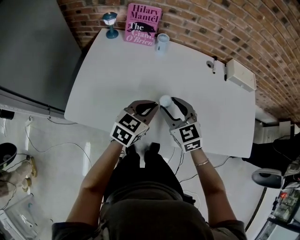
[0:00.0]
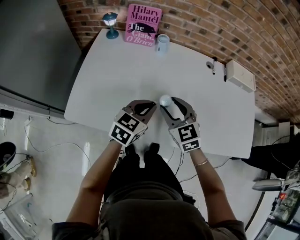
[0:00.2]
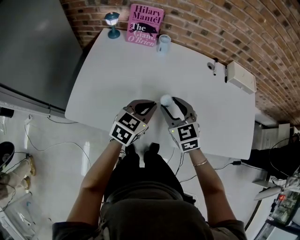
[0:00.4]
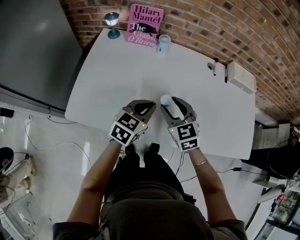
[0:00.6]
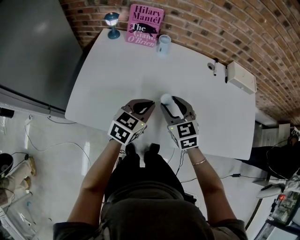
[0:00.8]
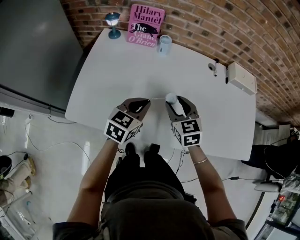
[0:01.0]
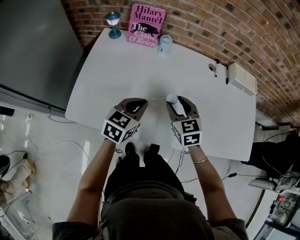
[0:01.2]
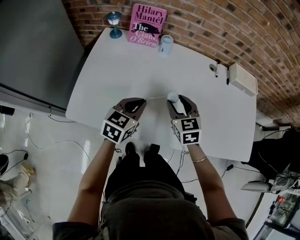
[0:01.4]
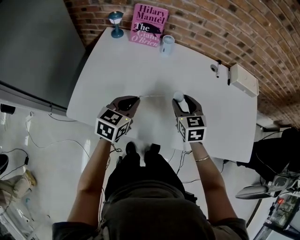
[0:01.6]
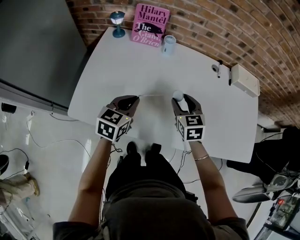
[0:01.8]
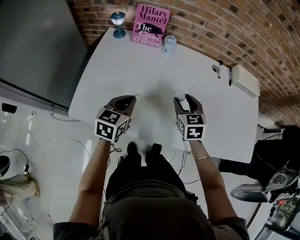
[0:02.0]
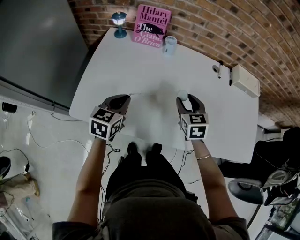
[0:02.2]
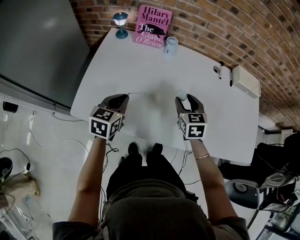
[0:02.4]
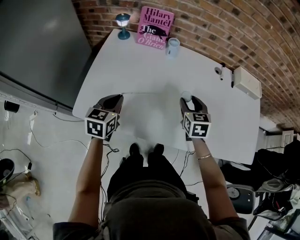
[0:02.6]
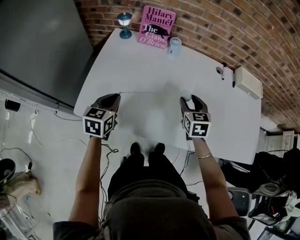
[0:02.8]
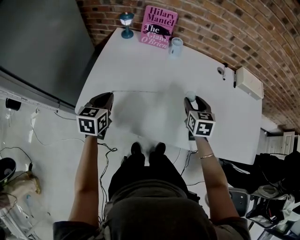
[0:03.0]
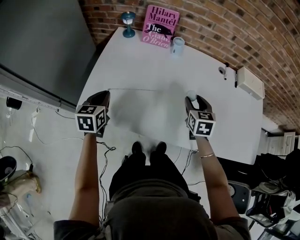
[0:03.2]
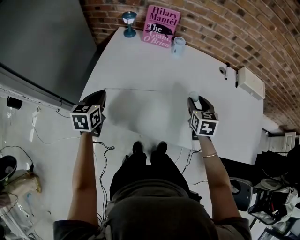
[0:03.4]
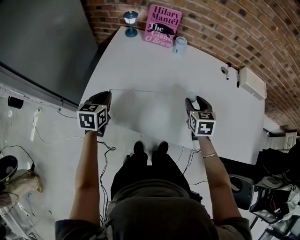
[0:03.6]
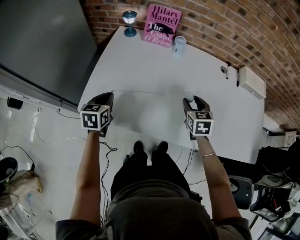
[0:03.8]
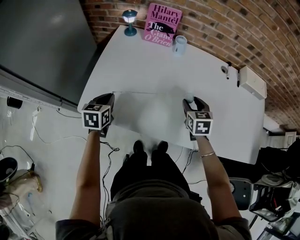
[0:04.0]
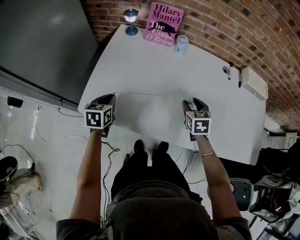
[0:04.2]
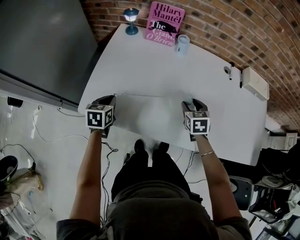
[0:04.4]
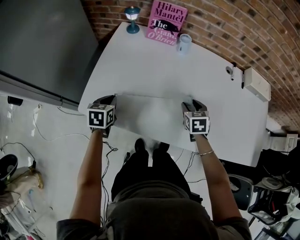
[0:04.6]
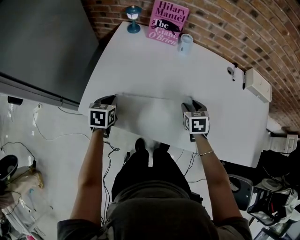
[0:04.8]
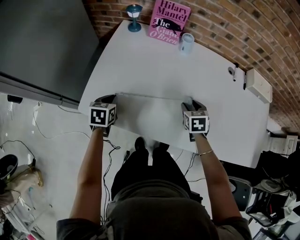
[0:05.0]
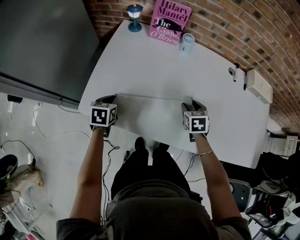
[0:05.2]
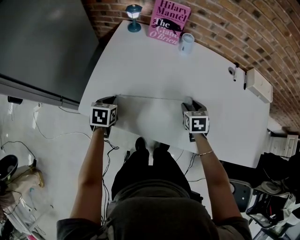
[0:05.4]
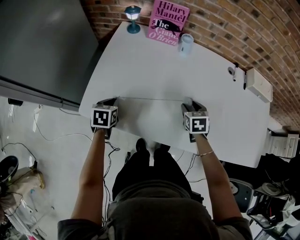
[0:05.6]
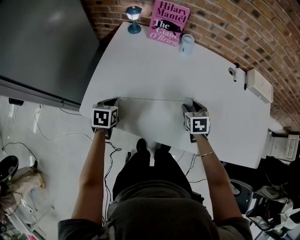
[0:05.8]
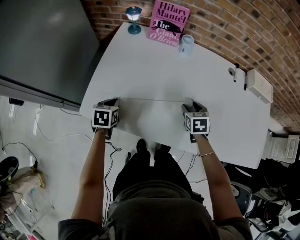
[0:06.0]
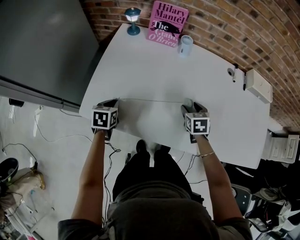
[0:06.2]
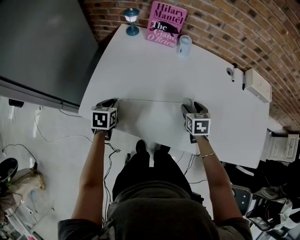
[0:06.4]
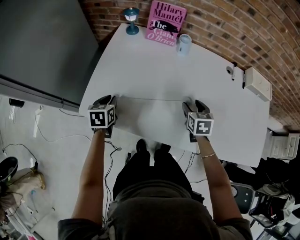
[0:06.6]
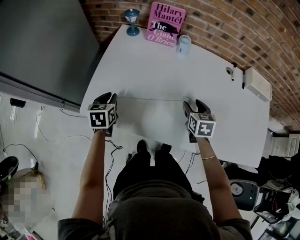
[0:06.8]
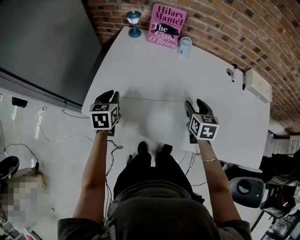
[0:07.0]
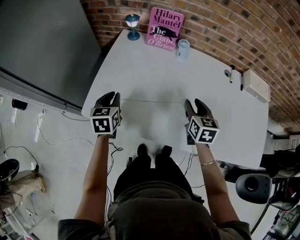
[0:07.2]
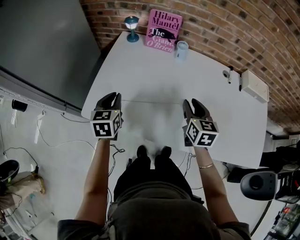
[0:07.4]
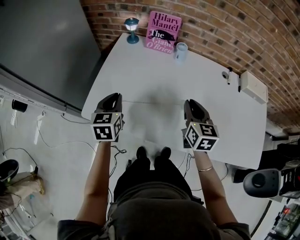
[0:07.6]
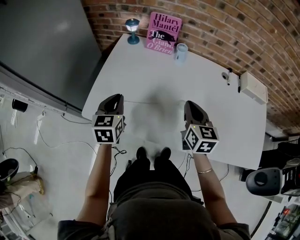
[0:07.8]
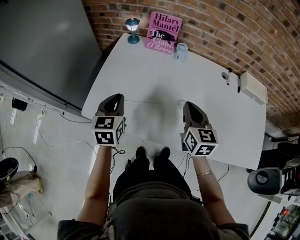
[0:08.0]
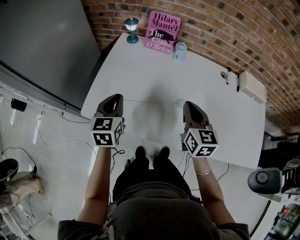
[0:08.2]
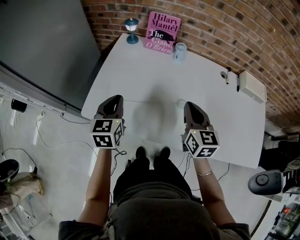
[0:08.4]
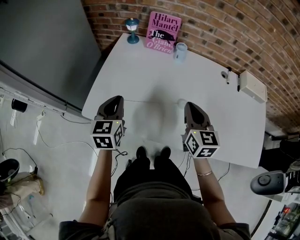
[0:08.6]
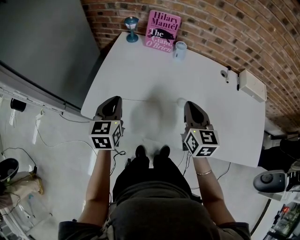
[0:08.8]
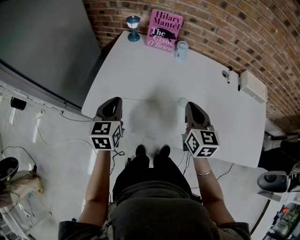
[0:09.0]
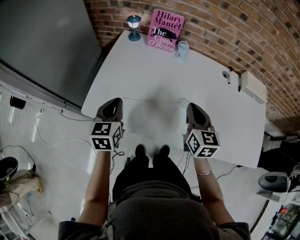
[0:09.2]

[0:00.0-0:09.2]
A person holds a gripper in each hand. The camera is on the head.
0:00.0 to 0:01.6: The left gripper is displaced to the left by roughly 10 cm. The right gripper heads forward, covering about 5 cm.
0:01.6 to 0:03.0: The left gripper goes approximately 15 cm to the left, and changes its angle by roughly 20 degrees.
0:03.0 to 0:04.6: Both grippers move downward, about 10 cm.
0:04.6 to 0:06.2: The grippers move only a little.
0:06.2 to 0:07.6: The two grippers go some 15 cm upward. The left gripper rotates about 30 degrees; the right gripper rotates roughly 30 degrees, and closes up.
0:07.6 to 0:09.2: The grippers make only small movements.

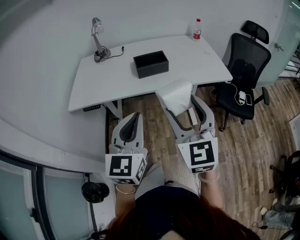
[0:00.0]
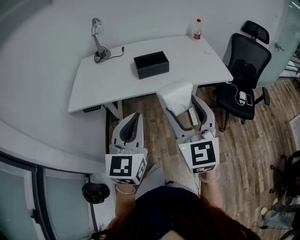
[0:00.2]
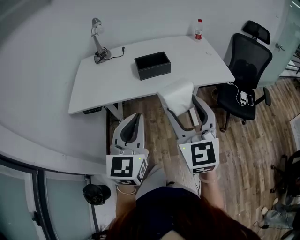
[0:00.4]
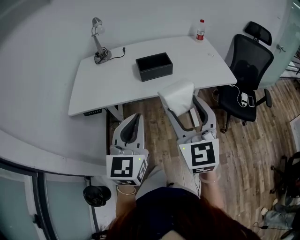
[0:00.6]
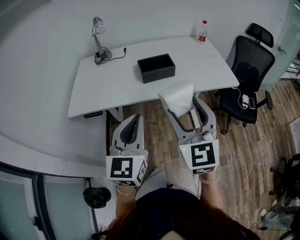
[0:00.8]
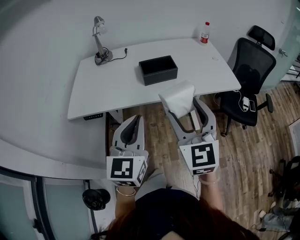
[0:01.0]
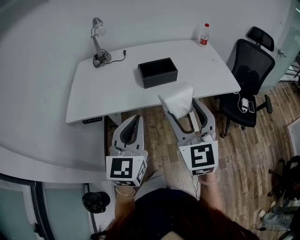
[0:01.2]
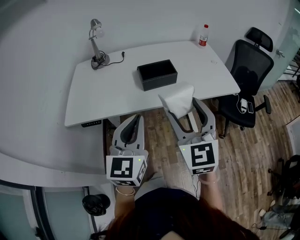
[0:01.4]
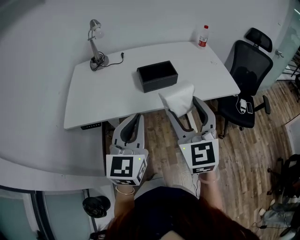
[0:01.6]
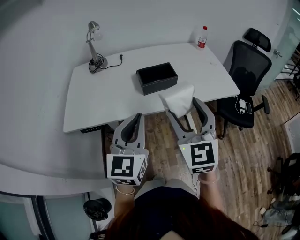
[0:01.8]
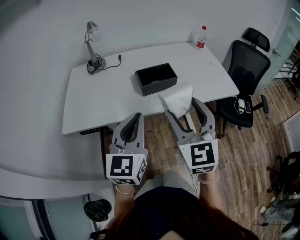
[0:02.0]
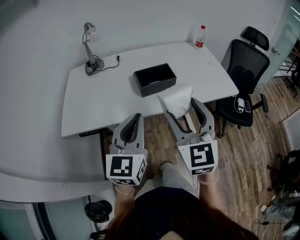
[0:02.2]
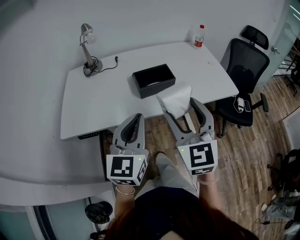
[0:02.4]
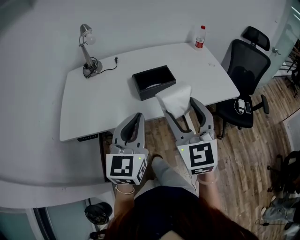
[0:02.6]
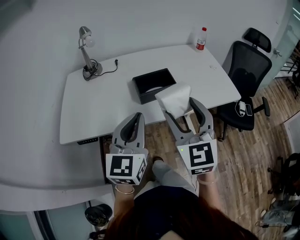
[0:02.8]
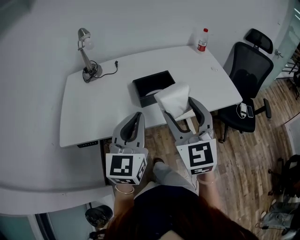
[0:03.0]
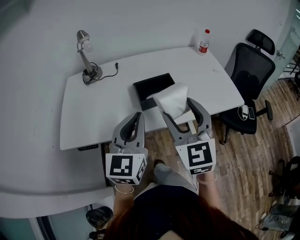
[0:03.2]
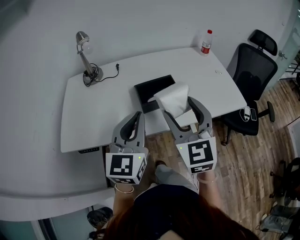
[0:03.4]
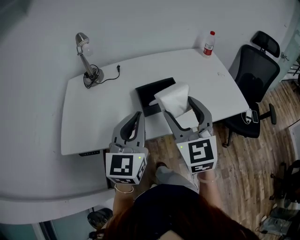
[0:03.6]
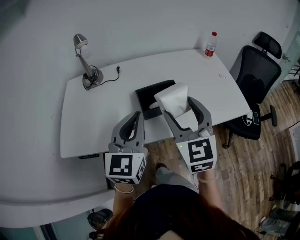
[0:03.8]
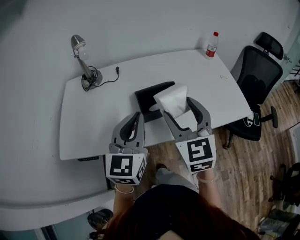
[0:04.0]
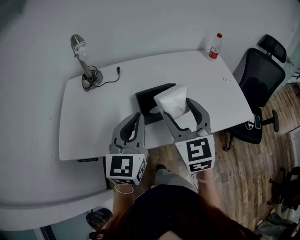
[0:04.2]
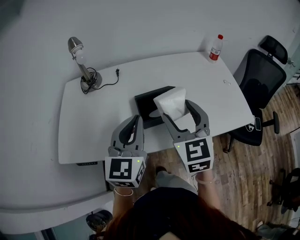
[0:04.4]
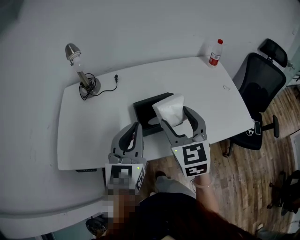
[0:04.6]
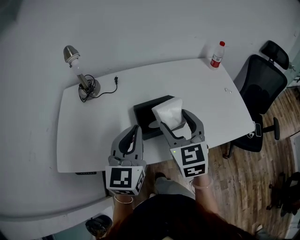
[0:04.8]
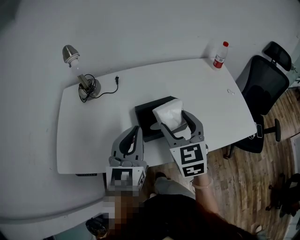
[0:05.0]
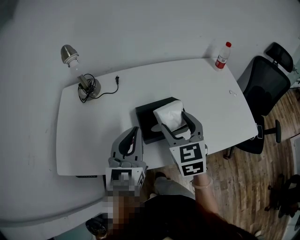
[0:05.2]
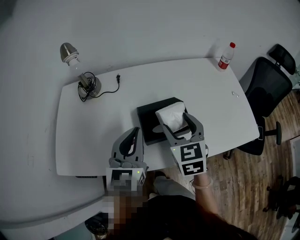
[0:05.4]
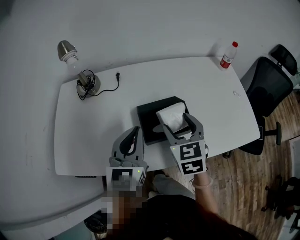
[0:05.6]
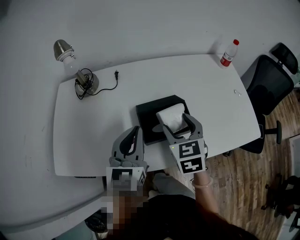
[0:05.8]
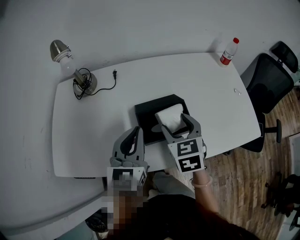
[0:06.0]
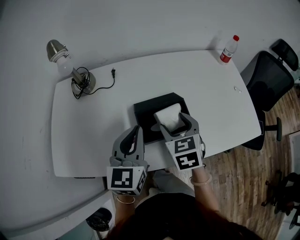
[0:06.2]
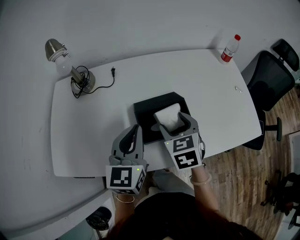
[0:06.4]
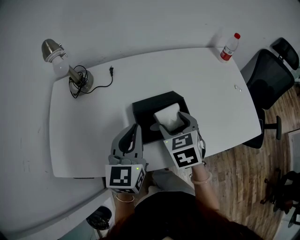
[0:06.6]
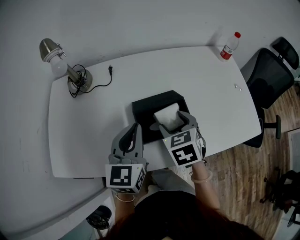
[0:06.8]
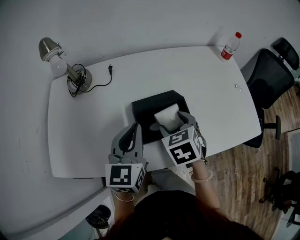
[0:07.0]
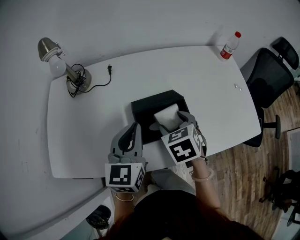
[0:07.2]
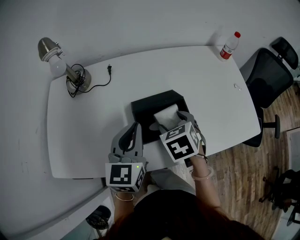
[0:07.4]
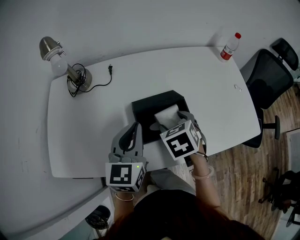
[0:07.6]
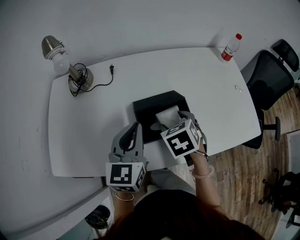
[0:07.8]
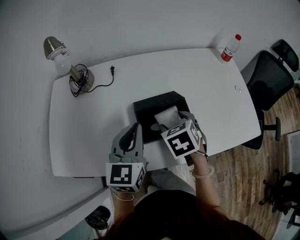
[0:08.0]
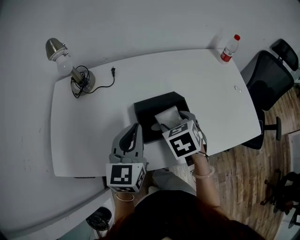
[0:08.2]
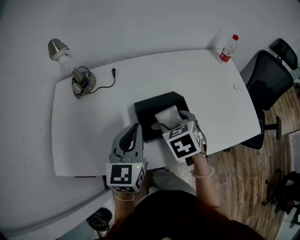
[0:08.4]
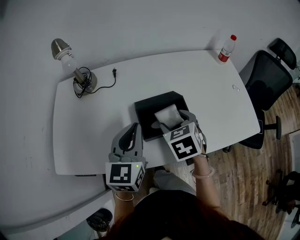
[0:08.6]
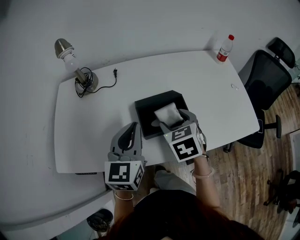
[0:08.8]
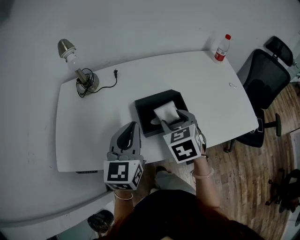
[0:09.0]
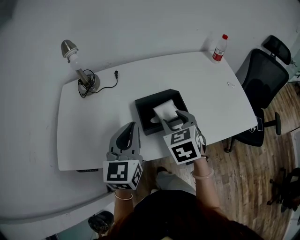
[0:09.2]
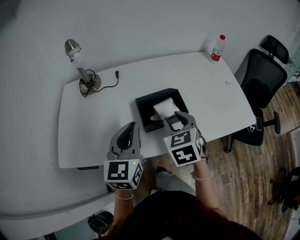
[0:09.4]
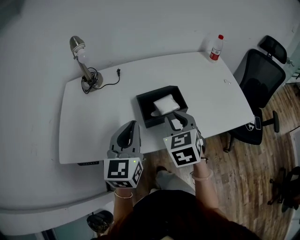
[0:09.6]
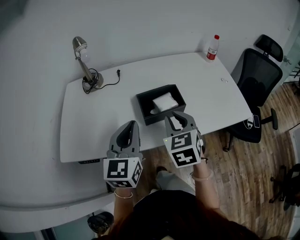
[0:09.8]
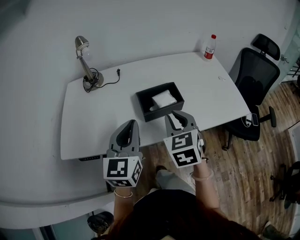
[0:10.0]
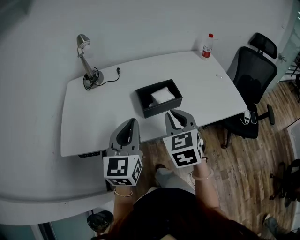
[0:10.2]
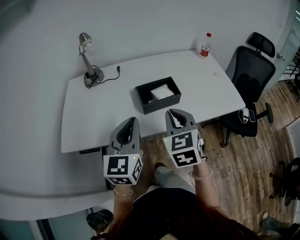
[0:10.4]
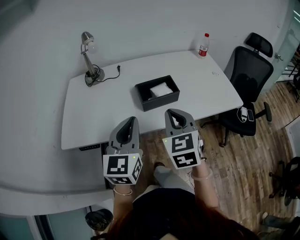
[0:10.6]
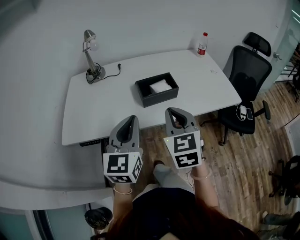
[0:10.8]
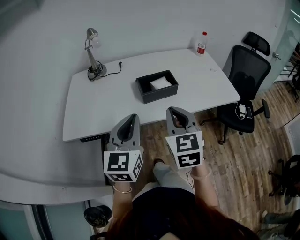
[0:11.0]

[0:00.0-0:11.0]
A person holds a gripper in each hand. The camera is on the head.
0:00.0 to 0:01.6: The grippers both shift forward and to the left by roughly 15 cm.
0:01.6 to 0:03.2: The grippers both shift forward by roughly 10 cm.
0:03.2 to 0:04.8: Both grippers travel together forward, some 15 cm.
0:04.8 to 0:06.2: The right gripper shifts approximately 10 cm downward and forward, and changes its angle by roughly 20 degrees; the left gripper goes approximately 5 cm forward and downward.
0:06.2 to 0:07.8: The right gripper rotates approximately 20 degrees.
0:07.8 to 0:09.4: The left gripper goes about 10 cm backward; the right gripper goes approximately 10 cm upward and backward, swivels approximately 20 degrees, and closes.
0:09.4 to 0:11.0: The right gripper moves backward and upward, some 20 cm, changes its angle by about 20 degrees, and closes. Meanwhile the left gripper is displaced backward by about 20 cm.

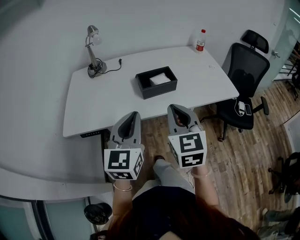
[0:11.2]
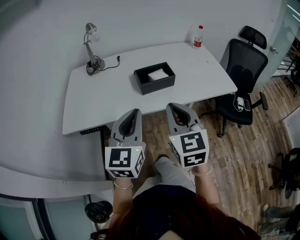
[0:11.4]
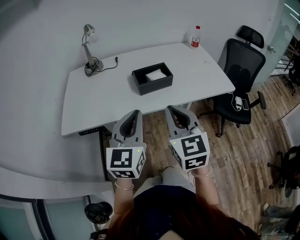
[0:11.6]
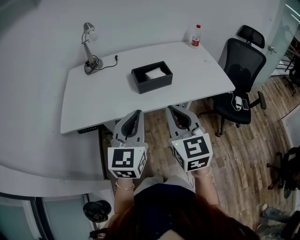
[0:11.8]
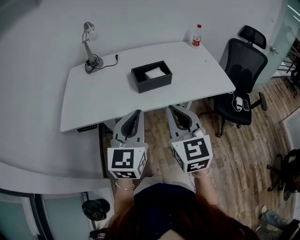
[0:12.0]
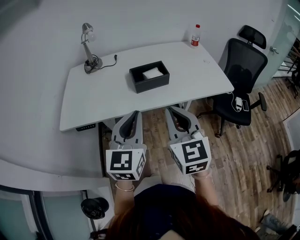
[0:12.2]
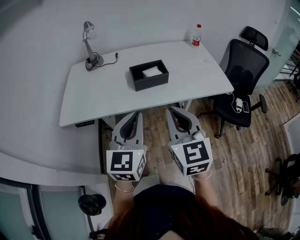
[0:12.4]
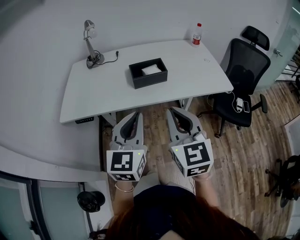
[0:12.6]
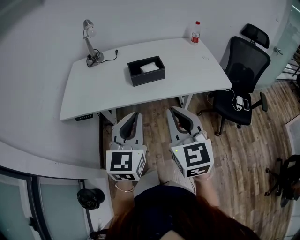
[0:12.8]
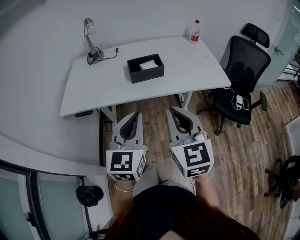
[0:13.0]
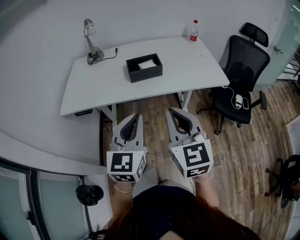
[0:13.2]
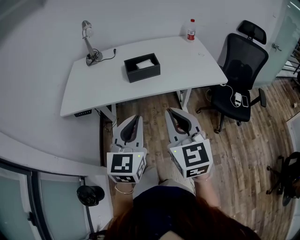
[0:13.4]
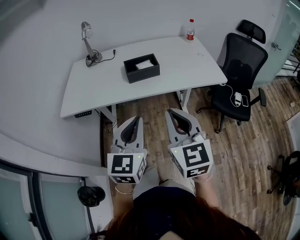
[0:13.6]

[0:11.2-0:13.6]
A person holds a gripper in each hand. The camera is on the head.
0:11.2 to 0:12.4: The right gripper moves backward, approximately 5 cm. The left gripper shifts roughly 5 cm to the right.
0:12.4 to 0:13.6: Both grippers travel together backward and to the right, about 10 cm.

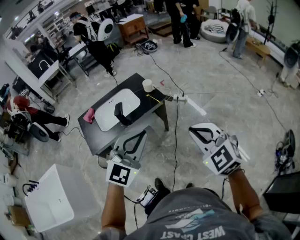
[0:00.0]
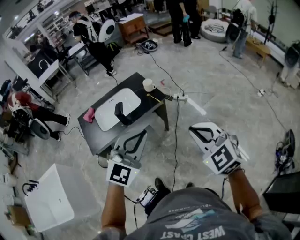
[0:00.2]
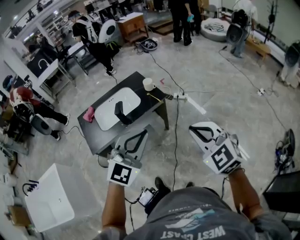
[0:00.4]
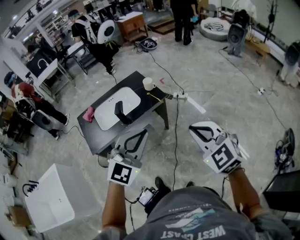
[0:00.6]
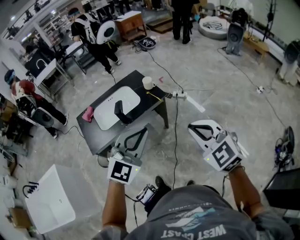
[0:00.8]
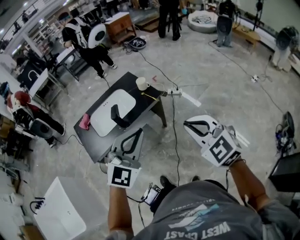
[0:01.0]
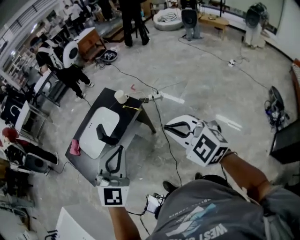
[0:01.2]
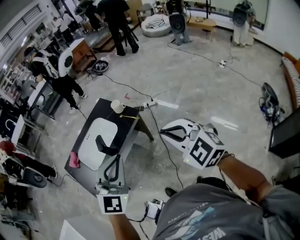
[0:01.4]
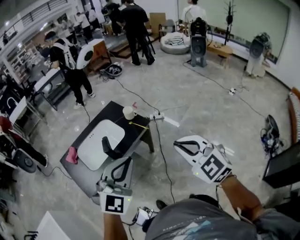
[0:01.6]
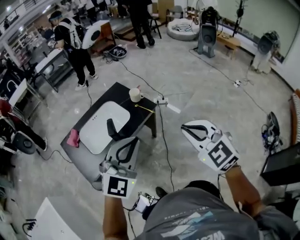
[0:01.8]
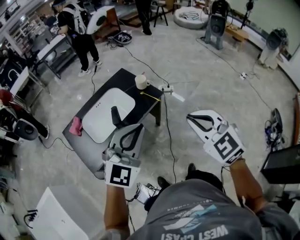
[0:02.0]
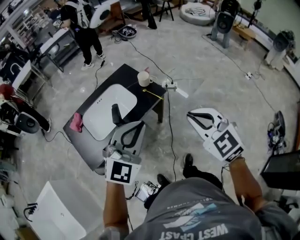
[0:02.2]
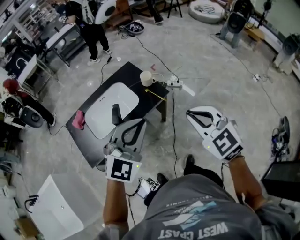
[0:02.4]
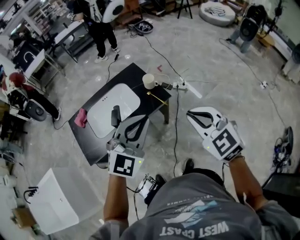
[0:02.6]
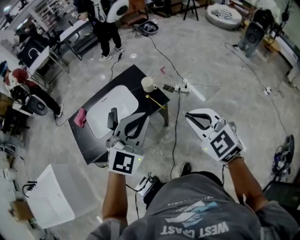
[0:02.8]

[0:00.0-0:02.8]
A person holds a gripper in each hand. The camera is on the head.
0:00.0 to 0:01.4: Both grippers move to the left and forward, about 10 cm.
0:01.4 to 0:02.8: The two grippers go about 15 cm forward.
